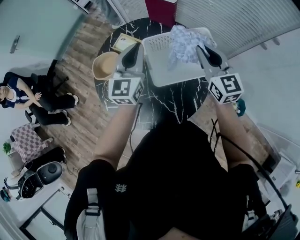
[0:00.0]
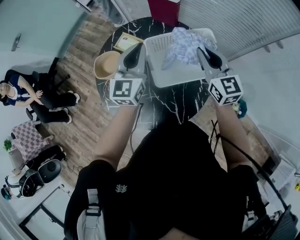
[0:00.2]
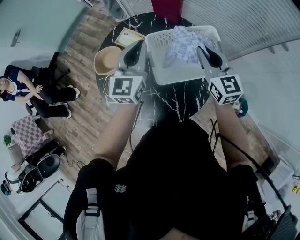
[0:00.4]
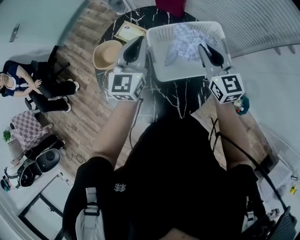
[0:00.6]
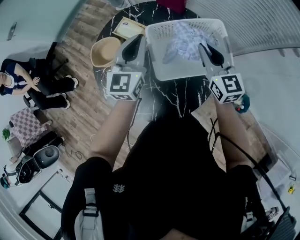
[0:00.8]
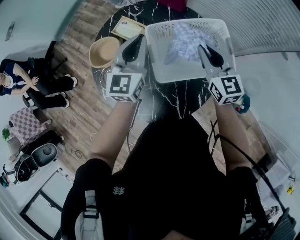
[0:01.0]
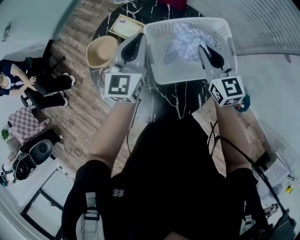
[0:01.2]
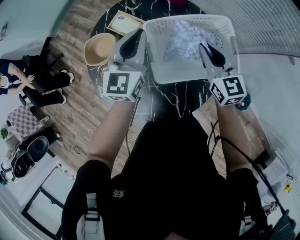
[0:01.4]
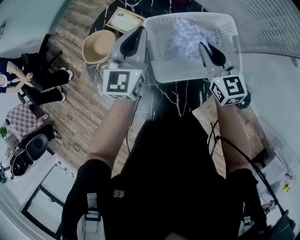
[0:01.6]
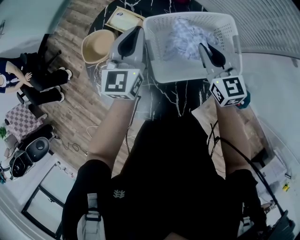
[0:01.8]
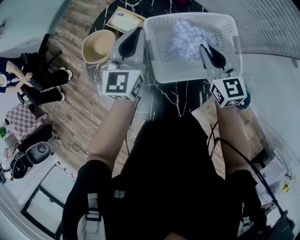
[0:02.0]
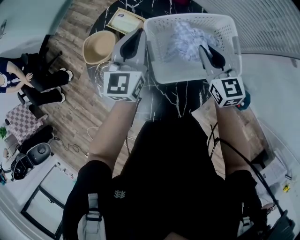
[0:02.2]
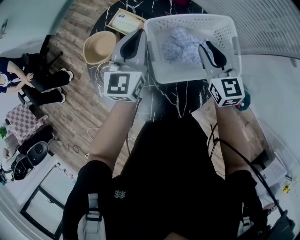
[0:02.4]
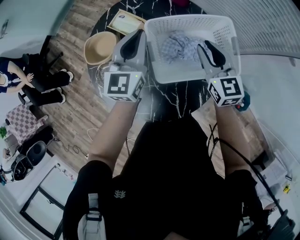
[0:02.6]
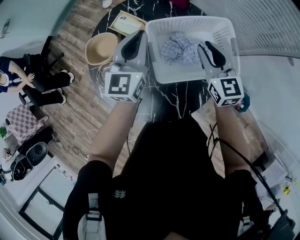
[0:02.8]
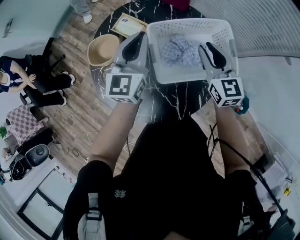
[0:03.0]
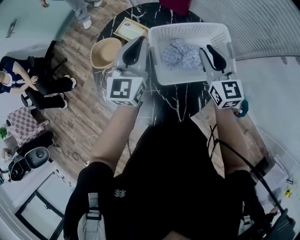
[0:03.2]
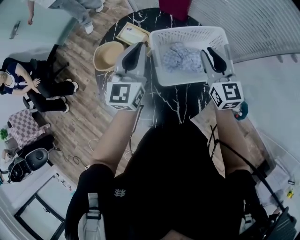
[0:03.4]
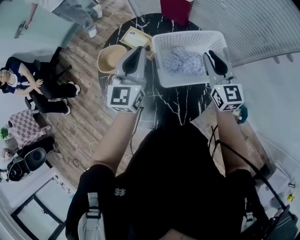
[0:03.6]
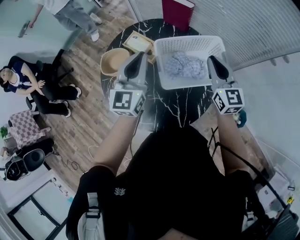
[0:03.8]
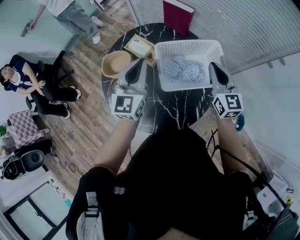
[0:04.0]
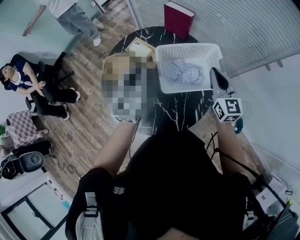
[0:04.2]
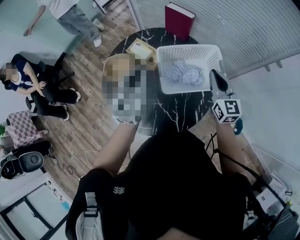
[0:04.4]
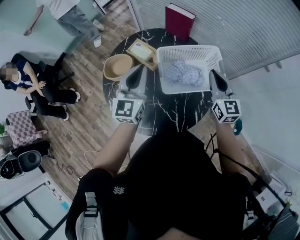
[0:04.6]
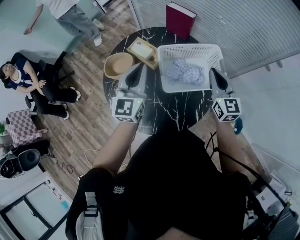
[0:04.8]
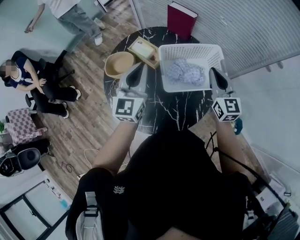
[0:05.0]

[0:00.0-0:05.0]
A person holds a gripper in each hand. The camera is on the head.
0:00.0 to 0:01.6: The right gripper travels downward by some 15 cm. Meanwhile the left gripper is displaced downward and forward by some 10 cm.
0:01.6 to 0:03.4: The right gripper moves upward, about 5 cm. Meanwhile the left gripper travels upward and backward by some 10 cm.
0:03.4 to 0:05.0: The left gripper shifts approximately 5 cm backward. Meanwhile the right gripper changes place by approximately 5 cm.

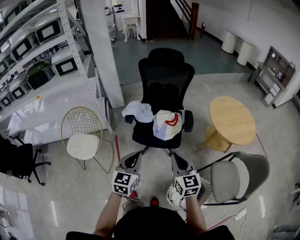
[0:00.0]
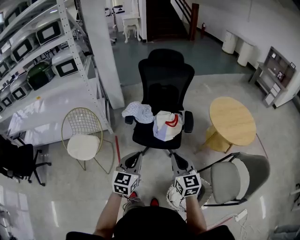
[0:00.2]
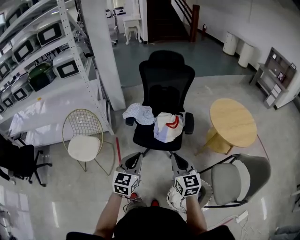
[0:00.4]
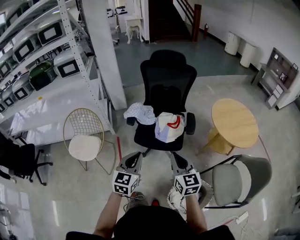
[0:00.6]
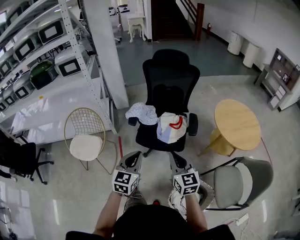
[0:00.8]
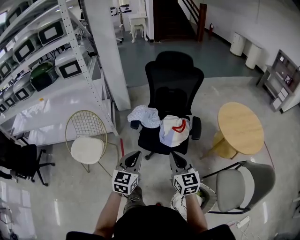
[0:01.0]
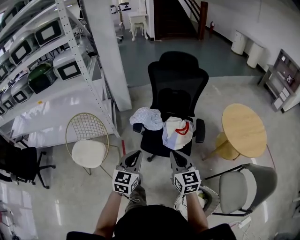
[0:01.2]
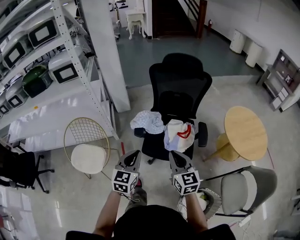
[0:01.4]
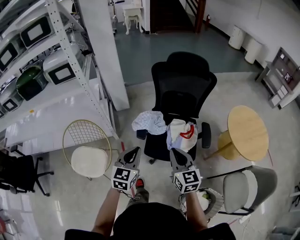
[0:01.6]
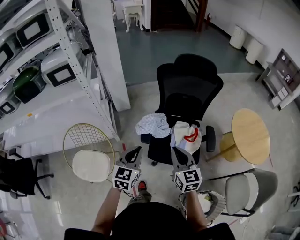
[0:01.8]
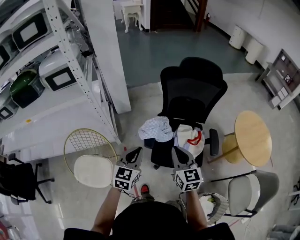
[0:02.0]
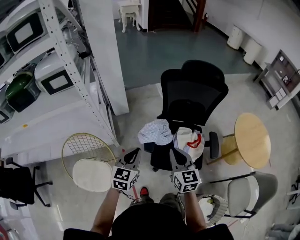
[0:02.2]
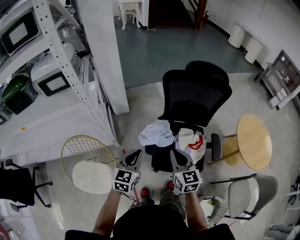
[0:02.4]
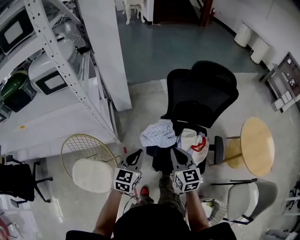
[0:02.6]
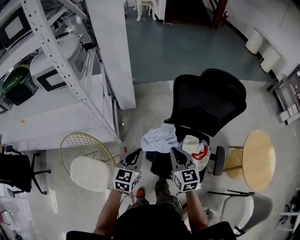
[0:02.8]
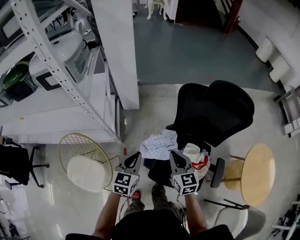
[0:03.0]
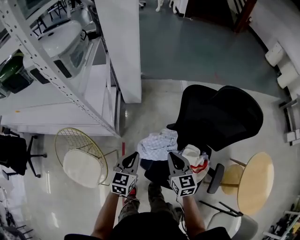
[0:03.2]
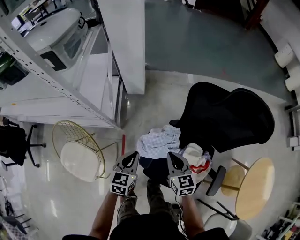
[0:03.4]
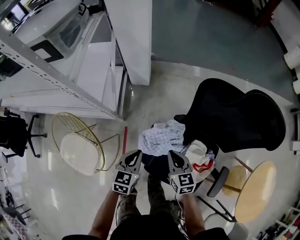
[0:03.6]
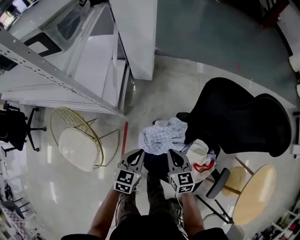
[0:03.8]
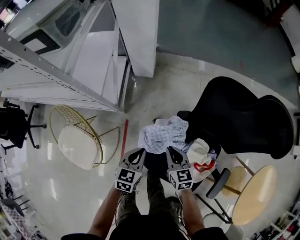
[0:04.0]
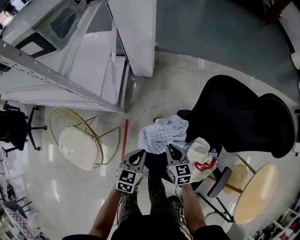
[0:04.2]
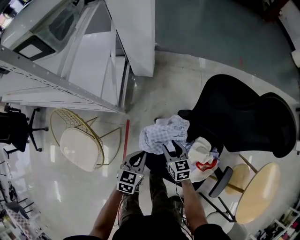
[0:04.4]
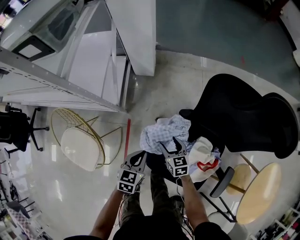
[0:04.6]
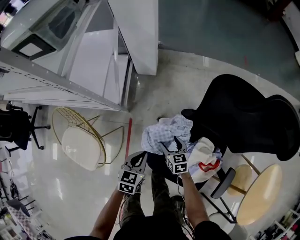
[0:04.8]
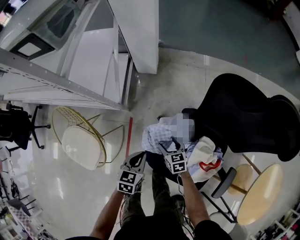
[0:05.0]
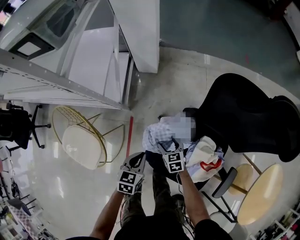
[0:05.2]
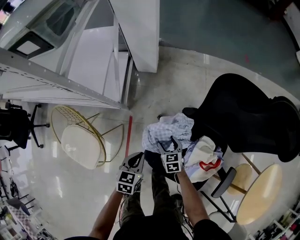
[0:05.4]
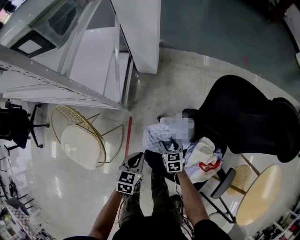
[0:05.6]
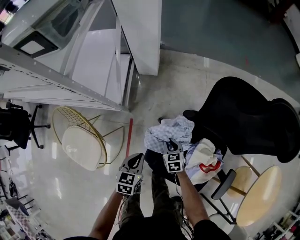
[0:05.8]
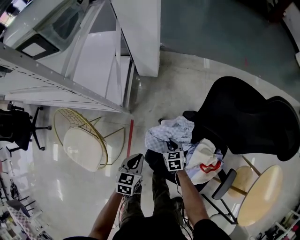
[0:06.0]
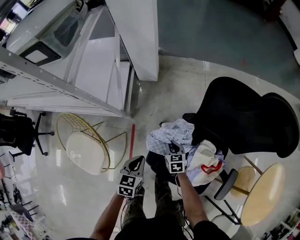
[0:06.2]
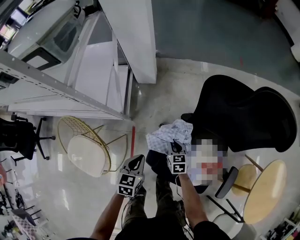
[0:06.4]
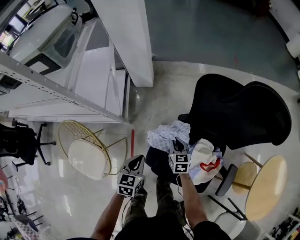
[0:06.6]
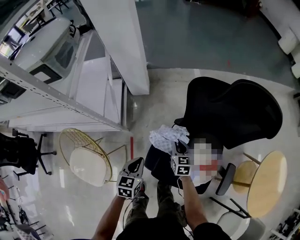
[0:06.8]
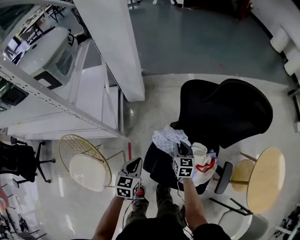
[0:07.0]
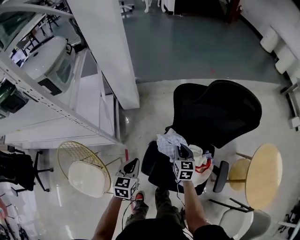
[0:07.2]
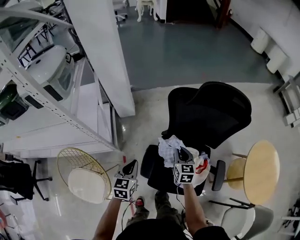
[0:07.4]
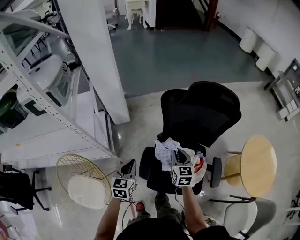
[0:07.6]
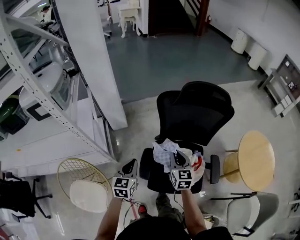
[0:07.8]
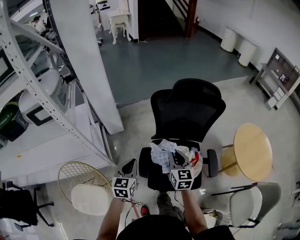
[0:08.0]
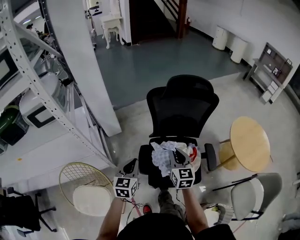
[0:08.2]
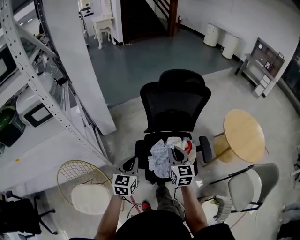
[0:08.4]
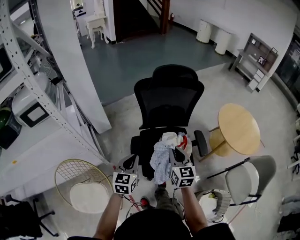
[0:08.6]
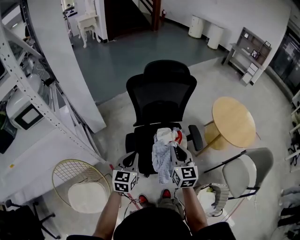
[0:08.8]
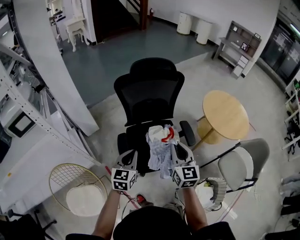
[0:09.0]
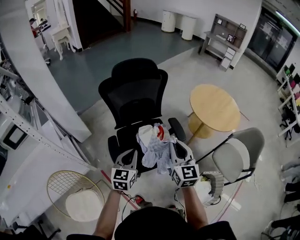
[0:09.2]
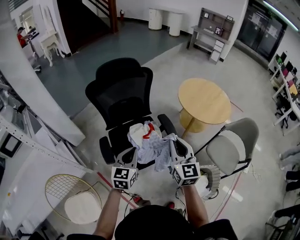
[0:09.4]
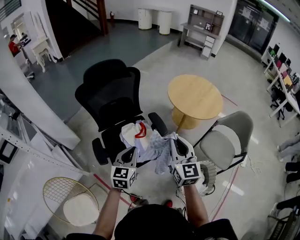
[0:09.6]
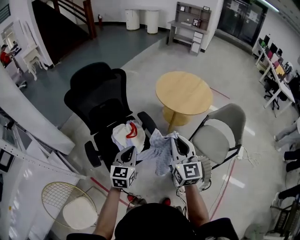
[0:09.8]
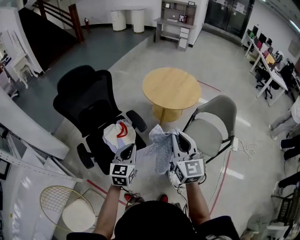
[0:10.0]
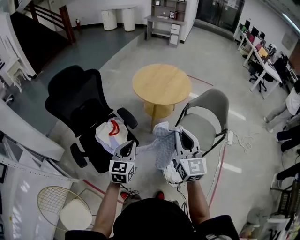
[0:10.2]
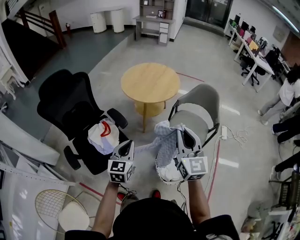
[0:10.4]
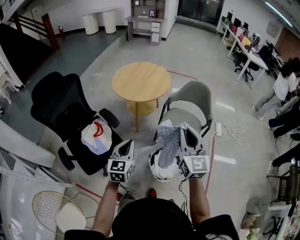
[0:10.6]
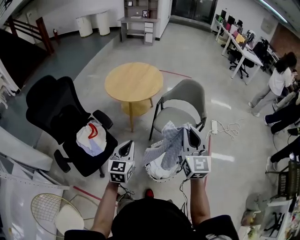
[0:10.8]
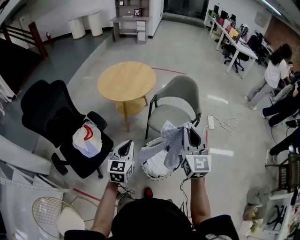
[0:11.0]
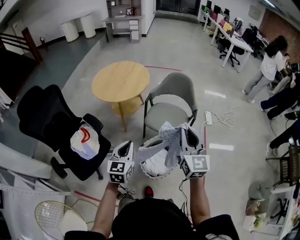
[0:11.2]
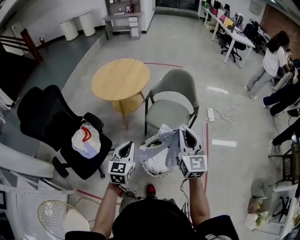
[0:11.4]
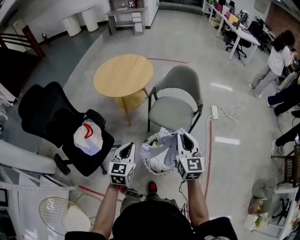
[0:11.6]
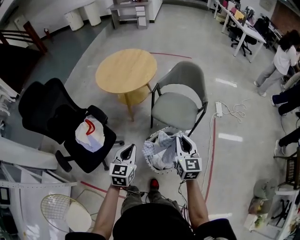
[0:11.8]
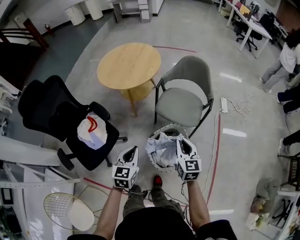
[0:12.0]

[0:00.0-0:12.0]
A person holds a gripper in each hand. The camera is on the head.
0:00.0 to 0:01.6: The two grippers go approximately 25 cm forward and to the left.
0:01.6 to 0:03.0: The grippers both shift forward by some 25 cm.
0:03.0 to 0:04.4: Both grippers move downward, some 20 cm. The left gripper swivels approximately 20 degrees. Meanwhile the right gripper changes its angle by roughly 20 degrees, and opens its fingers.
0:04.4 to 0:06.0: The right gripper travels downward by roughly 10 cm, and closes its fingers.
0:06.0 to 0:07.6: The right gripper heads upward and to the right, covering some 30 cm, and turns by approximately 40 degrees. The left gripper shifts about 15 cm upward, and turns by approximately 20 degrees.
0:07.6 to 0:09.0: The left gripper goes approximately 20 cm to the right, backward and upward, and rotates approximately 30 degrees. The right gripper heads backward, upward and to the right, covering about 30 cm, and rotates some 30 degrees.
0:09.0 to 0:10.4: Both grippers are carried approximately 40 cm. The left gripper rotates about 30 degrees; the right gripper rotates some 30 degrees.
0:10.4 to 0:12.0: The left gripper is displaced to the right and downward by about 20 cm, while the right gripper goes some 30 cm downward and to the right, and rotates some 30 degrees.

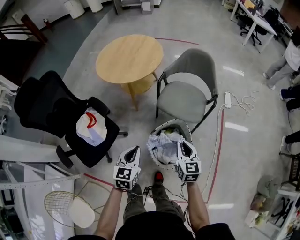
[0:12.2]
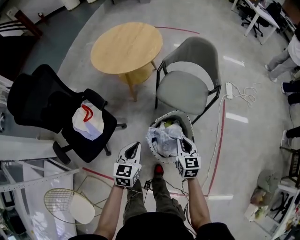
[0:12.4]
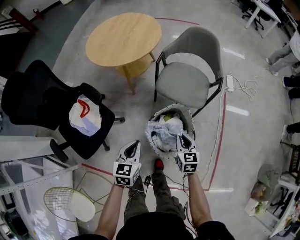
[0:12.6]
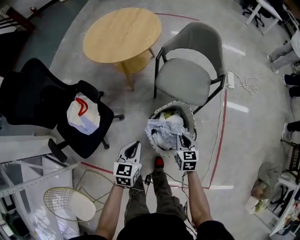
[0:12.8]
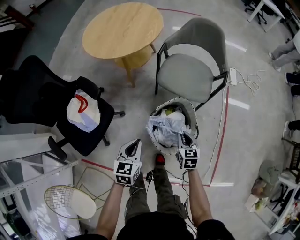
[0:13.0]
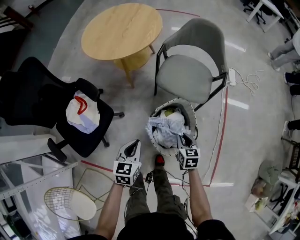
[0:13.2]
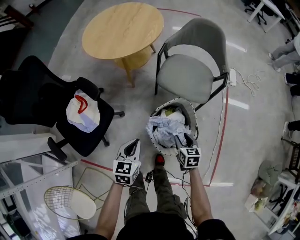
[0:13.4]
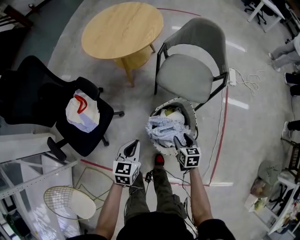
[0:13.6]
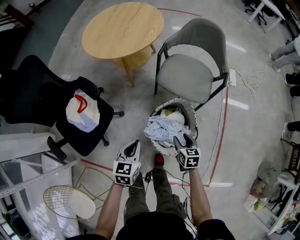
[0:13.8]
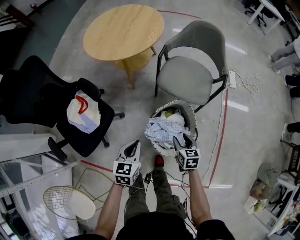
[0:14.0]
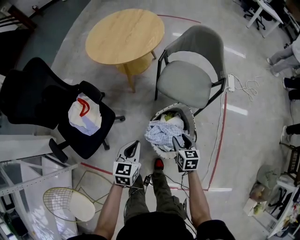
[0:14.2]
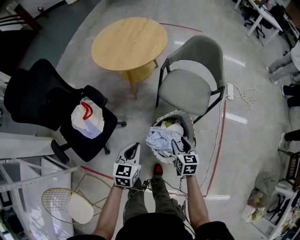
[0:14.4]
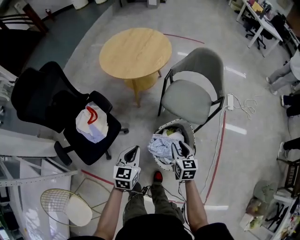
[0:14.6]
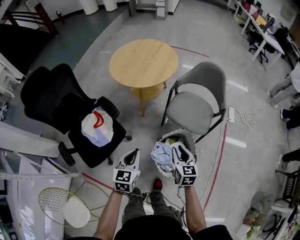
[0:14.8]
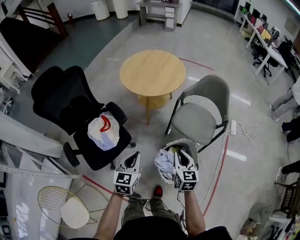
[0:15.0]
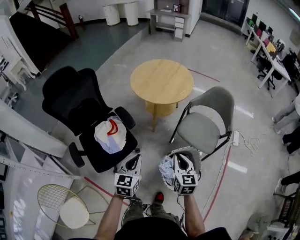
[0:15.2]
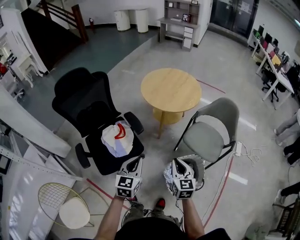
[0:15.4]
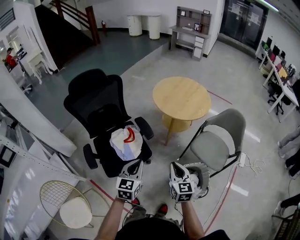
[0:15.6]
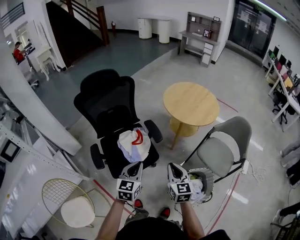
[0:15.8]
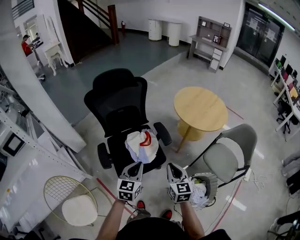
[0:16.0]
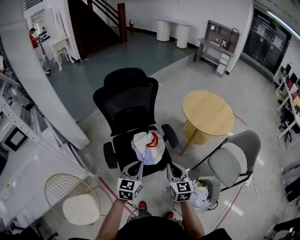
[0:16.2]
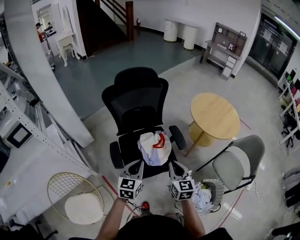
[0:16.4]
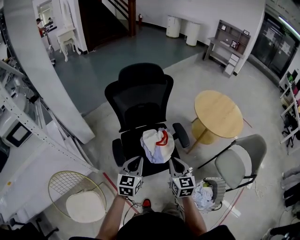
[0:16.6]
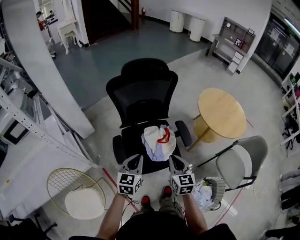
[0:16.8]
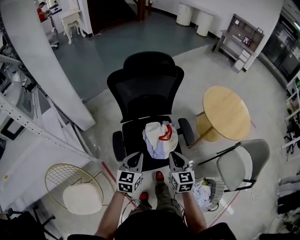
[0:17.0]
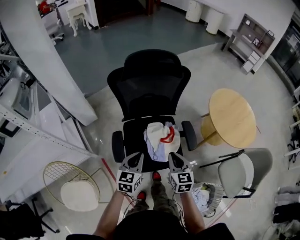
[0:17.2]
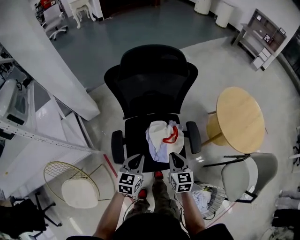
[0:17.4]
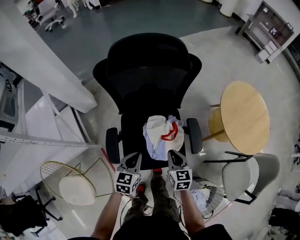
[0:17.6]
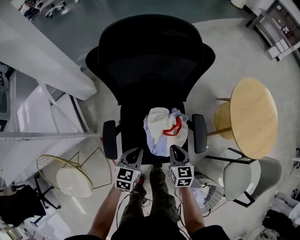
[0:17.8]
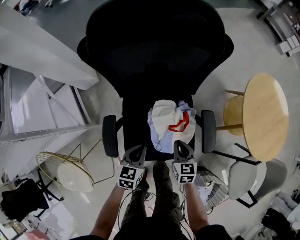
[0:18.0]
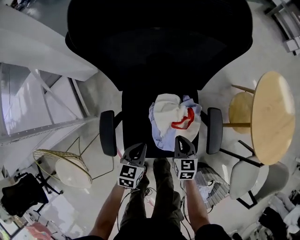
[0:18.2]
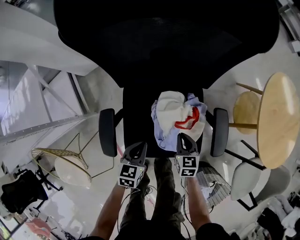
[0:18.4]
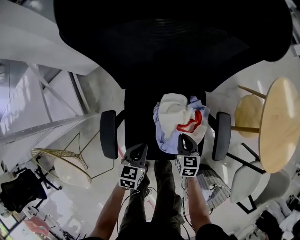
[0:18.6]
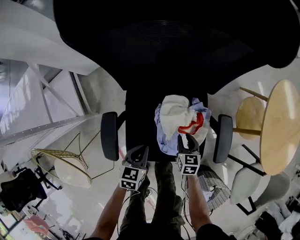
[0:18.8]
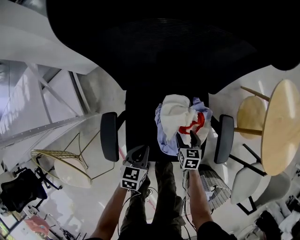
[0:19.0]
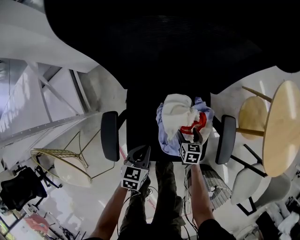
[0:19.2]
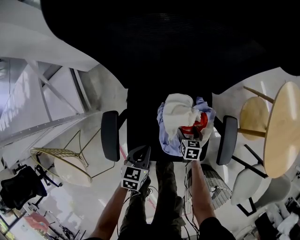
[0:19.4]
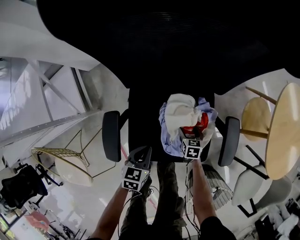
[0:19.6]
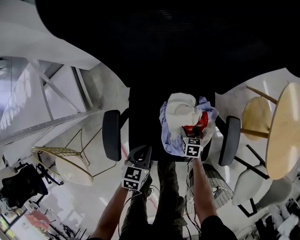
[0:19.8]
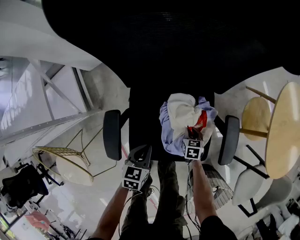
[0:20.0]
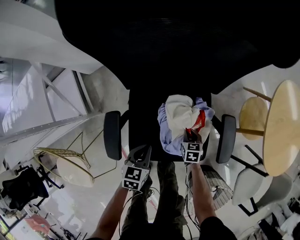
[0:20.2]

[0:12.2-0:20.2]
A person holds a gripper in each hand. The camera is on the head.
0:12.2 to 0:13.8: The left gripper shifts some 10 cm downward. The right gripper heads downward, covering approximately 20 cm, changes its angle by roughly 30 degrees, and opens.
0:13.8 to 0:15.4: The two grippers go approximately 30 cm upward and to the left. The left gripper rotates some 30 degrees. Meanwhile the right gripper swivels about 30 degrees, and closes.
0:15.4 to 0:17.0: The left gripper travels to the left by some 35 cm, and swivels approximately 20 degrees, while the right gripper moves to the left and forward, roughly 40 cm, and rotates approximately 30 degrees.
0:17.0 to 0:18.6: The two grippers go roughly 40 cm downward and forward. The right gripper rotates roughly 30 degrees, while the left gripper changes its angle by some 30 degrees.
0:18.6 to 0:20.2: The right gripper travels downward by roughly 10 cm, and opens and closes again.
